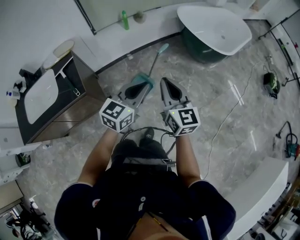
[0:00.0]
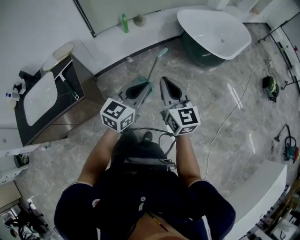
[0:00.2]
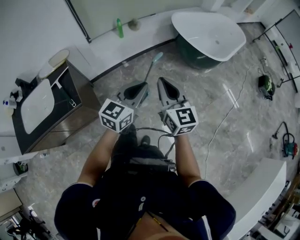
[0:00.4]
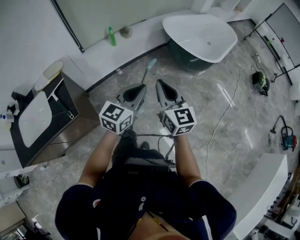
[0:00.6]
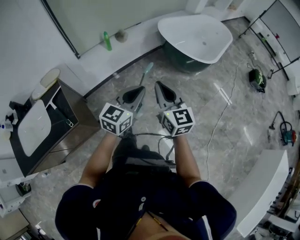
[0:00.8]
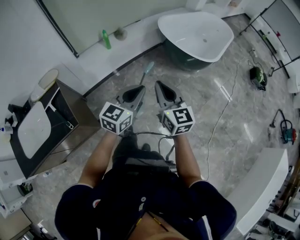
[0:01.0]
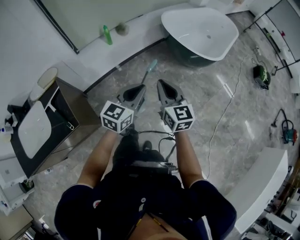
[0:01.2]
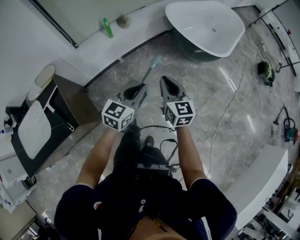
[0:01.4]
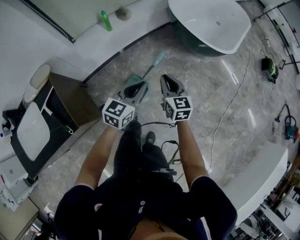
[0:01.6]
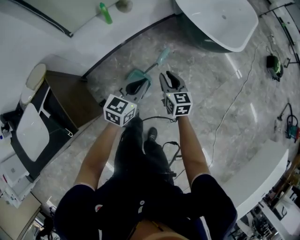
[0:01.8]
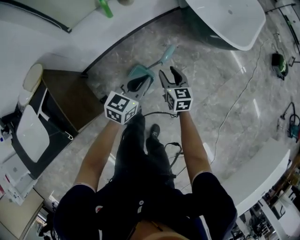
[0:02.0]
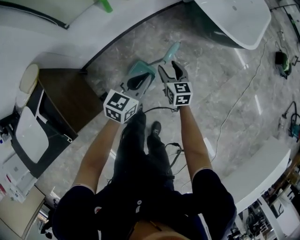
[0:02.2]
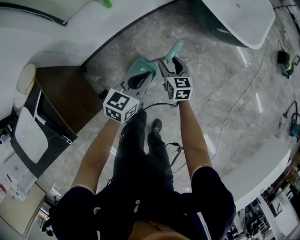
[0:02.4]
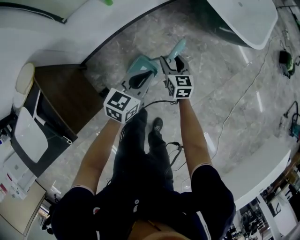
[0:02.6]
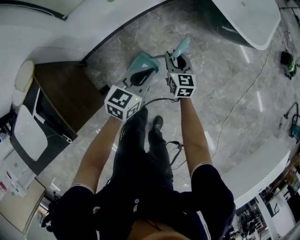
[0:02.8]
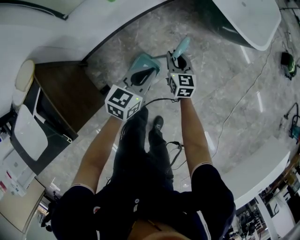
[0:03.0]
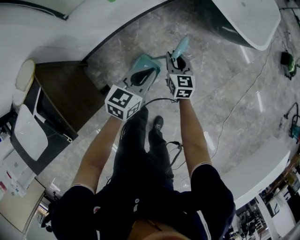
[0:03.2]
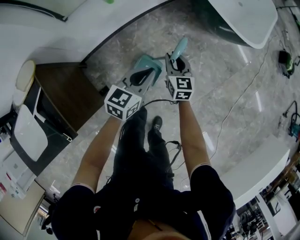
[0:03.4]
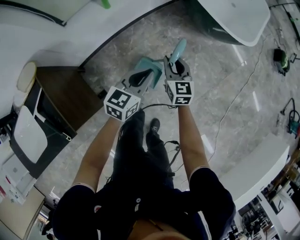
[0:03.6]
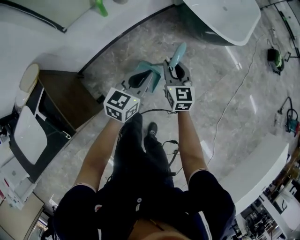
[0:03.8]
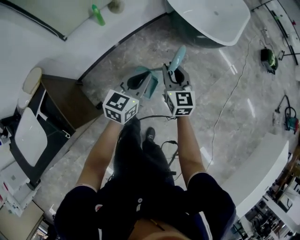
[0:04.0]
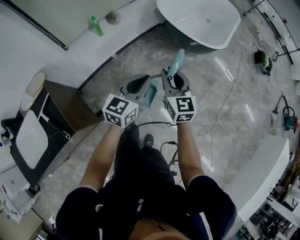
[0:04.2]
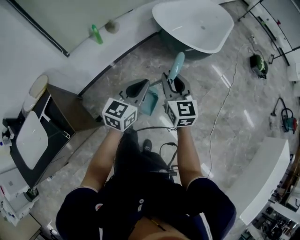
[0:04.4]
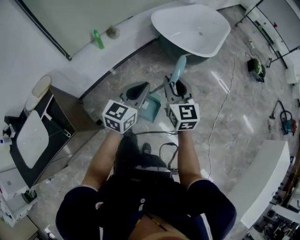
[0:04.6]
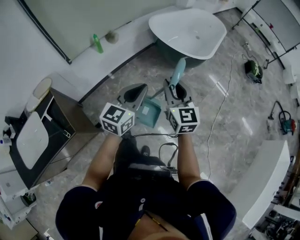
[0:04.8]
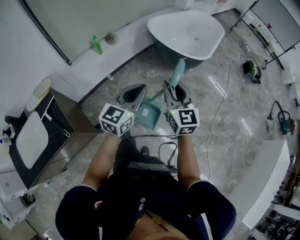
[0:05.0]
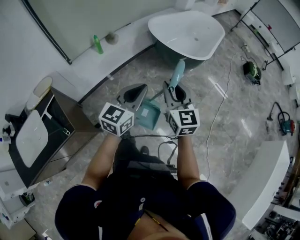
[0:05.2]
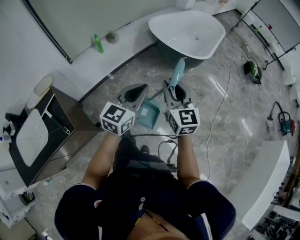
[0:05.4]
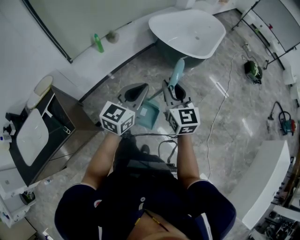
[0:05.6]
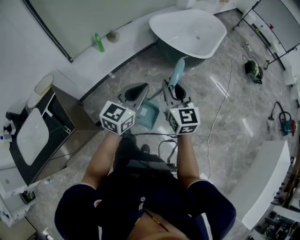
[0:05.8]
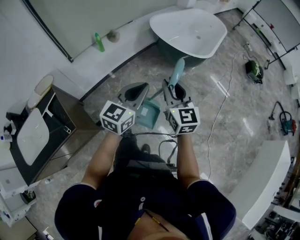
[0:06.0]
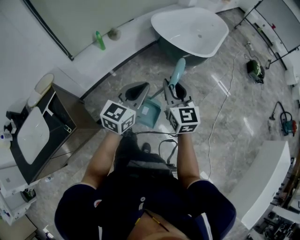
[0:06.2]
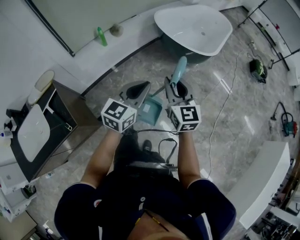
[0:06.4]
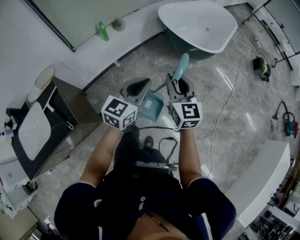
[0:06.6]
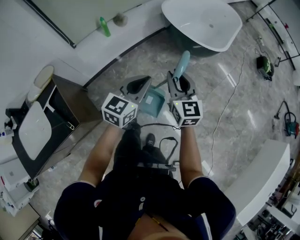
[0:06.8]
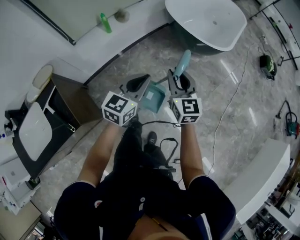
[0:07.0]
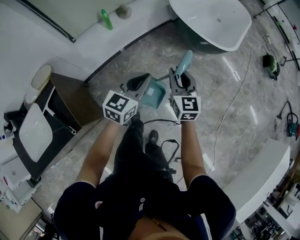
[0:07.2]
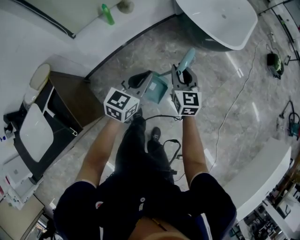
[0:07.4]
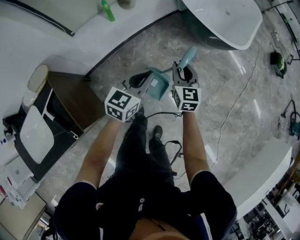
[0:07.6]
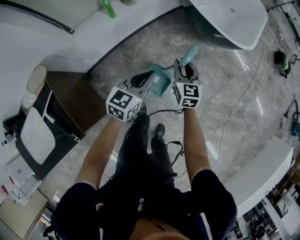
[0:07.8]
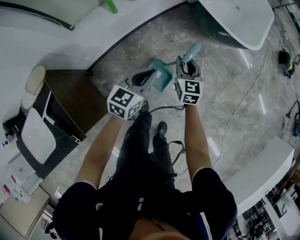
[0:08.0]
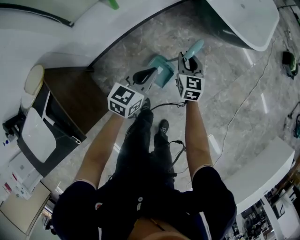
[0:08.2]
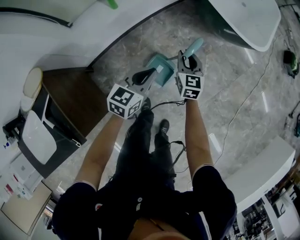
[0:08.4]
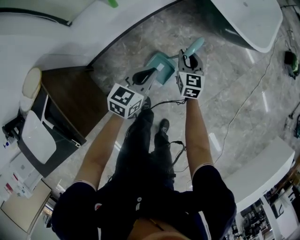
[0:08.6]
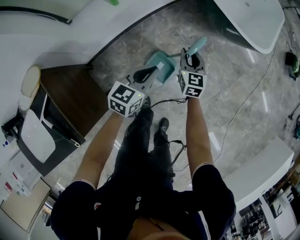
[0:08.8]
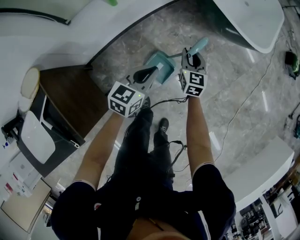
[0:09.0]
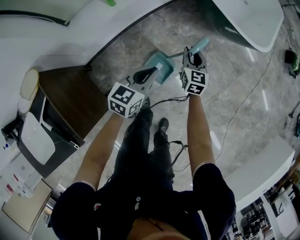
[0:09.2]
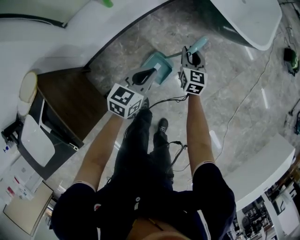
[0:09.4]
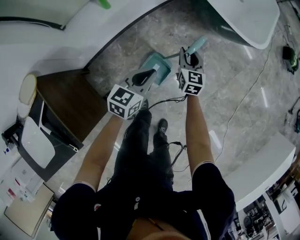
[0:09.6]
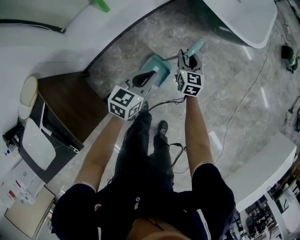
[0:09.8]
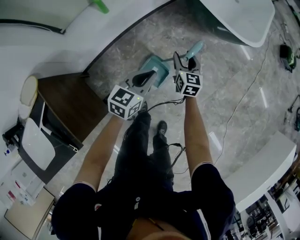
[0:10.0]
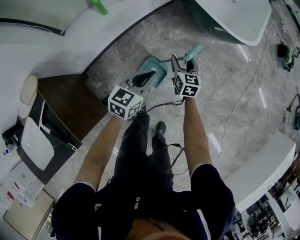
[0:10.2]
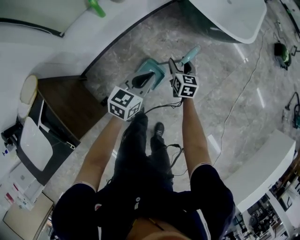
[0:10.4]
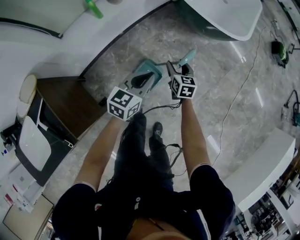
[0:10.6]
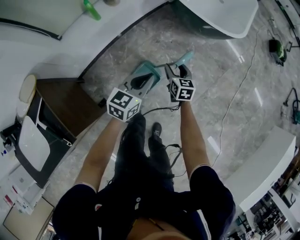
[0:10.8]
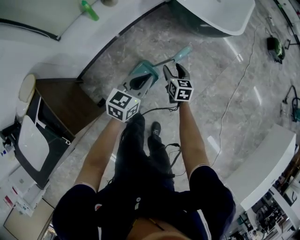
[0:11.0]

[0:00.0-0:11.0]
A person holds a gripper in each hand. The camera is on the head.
0:00.0 to 0:01.6: The two grippers go roughly 25 cm forward and downward. The right gripper changes its angle by about 20 degrees.
0:01.6 to 0:03.2: The grippers both shift downward and forward by some 20 cm. The right gripper opens.
0:03.2 to 0:04.8: The left gripper heads upward, backward and to the right, covering roughly 35 cm, and turns by about 20 degrees. Meanwhile the right gripper travels upward and backward by approximately 40 cm, and swivels some 20 degrees.
0:04.8 to 0:06.2: The grippers make only small movements.
0:06.2 to 0:07.8: The right gripper heads downward and forward, covering approximately 35 cm; the left gripper heads downward, forward and to the left, covering roughly 30 cm.
0:07.8 to 0:09.4: The left gripper shifts approximately 10 cm downward. The right gripper goes approximately 15 cm downward and forward.
0:09.4 to 0:11.0: The left gripper travels to the right, upward and backward by about 15 cm; the right gripper moves backward and to the right, some 15 cm, and opens up.

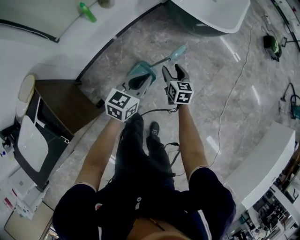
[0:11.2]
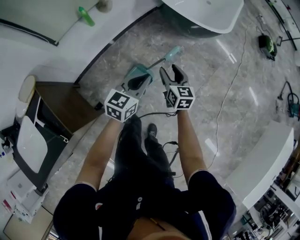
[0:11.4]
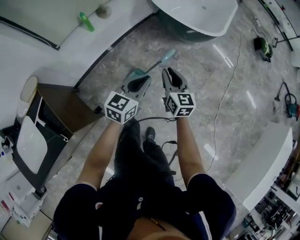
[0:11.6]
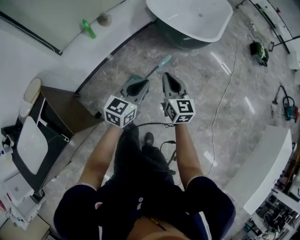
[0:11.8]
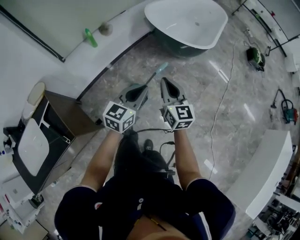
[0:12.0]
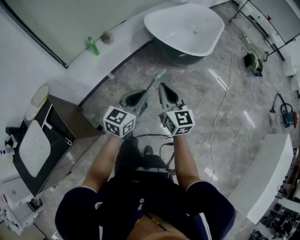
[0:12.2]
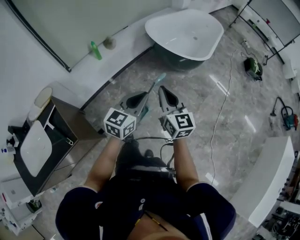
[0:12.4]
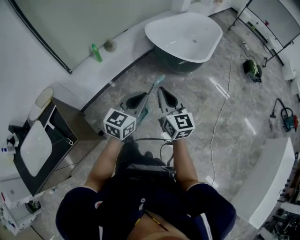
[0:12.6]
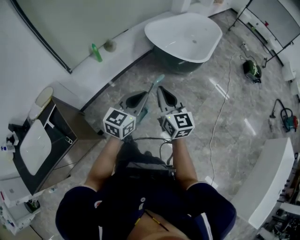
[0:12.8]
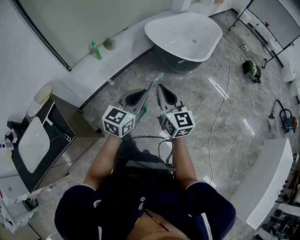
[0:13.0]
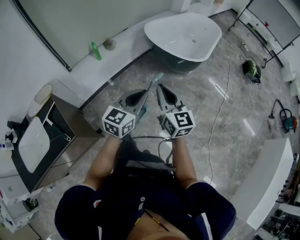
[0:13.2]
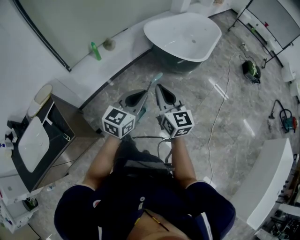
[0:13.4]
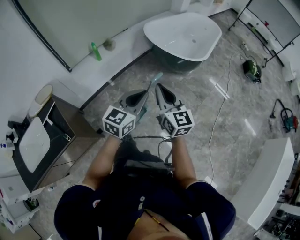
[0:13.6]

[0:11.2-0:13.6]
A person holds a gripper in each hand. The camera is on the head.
0:11.2 to 0:12.4: The right gripper shifts roughly 35 cm upward and backward, changes its angle by some 30 degrees, and closes its fingers. Meanwhile the left gripper travels upward and backward by about 20 cm.
0:12.4 to 0:13.6: The grippers make only small movements.

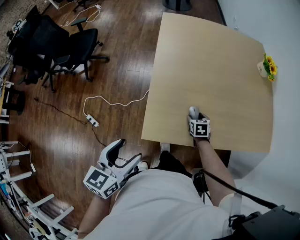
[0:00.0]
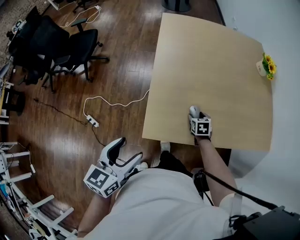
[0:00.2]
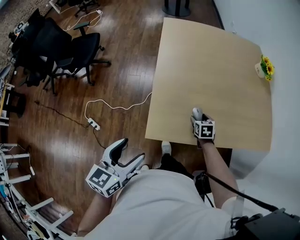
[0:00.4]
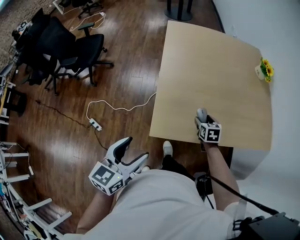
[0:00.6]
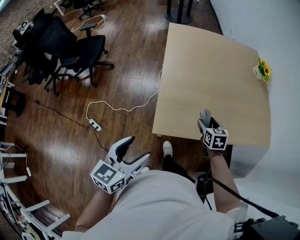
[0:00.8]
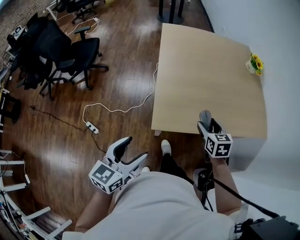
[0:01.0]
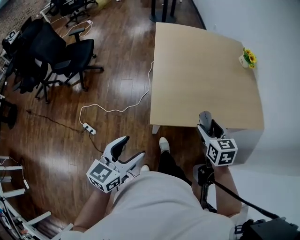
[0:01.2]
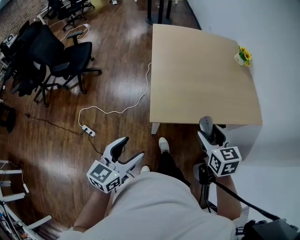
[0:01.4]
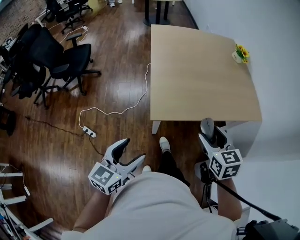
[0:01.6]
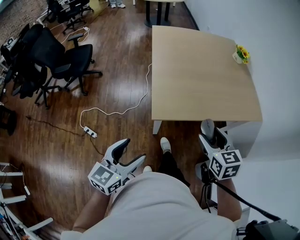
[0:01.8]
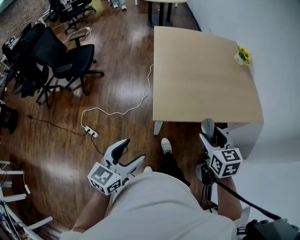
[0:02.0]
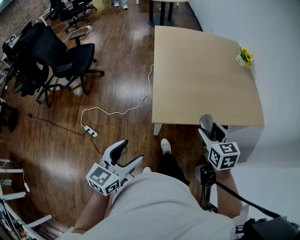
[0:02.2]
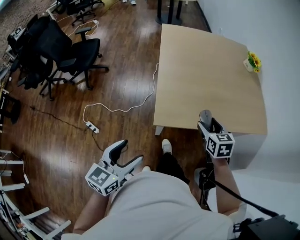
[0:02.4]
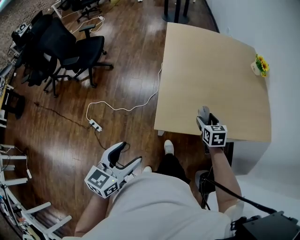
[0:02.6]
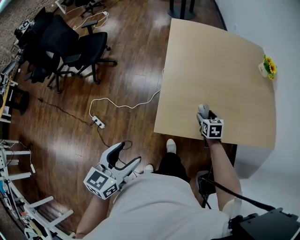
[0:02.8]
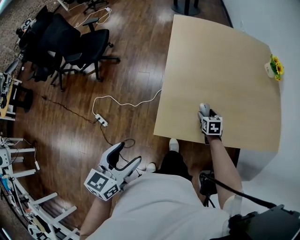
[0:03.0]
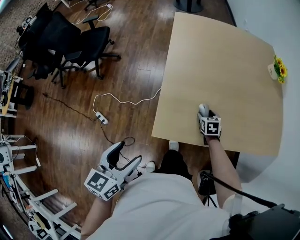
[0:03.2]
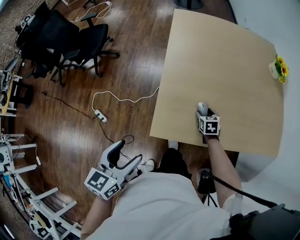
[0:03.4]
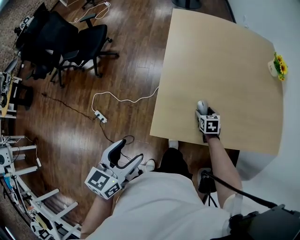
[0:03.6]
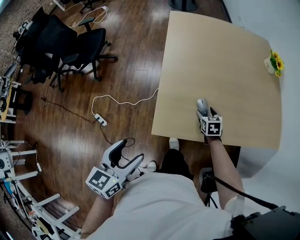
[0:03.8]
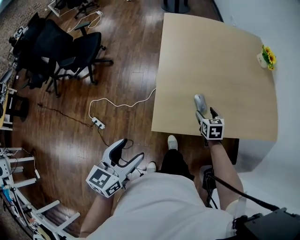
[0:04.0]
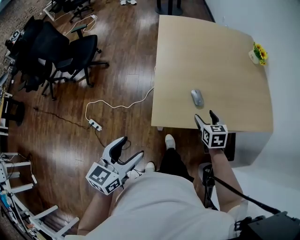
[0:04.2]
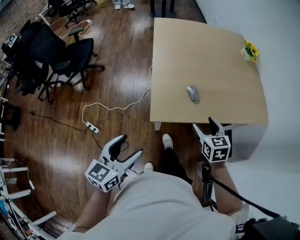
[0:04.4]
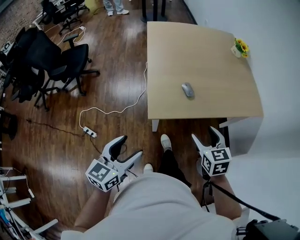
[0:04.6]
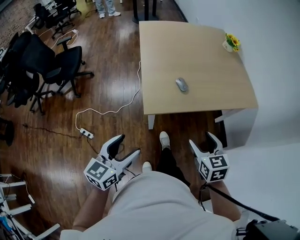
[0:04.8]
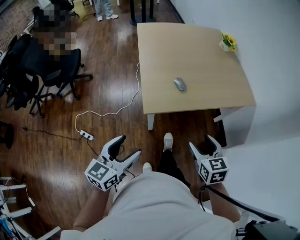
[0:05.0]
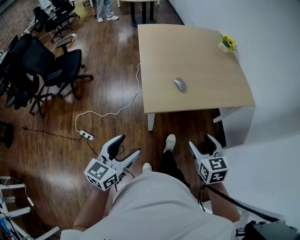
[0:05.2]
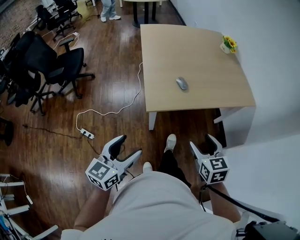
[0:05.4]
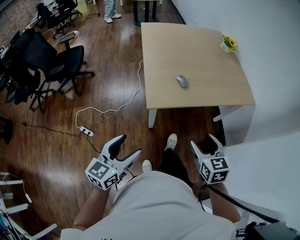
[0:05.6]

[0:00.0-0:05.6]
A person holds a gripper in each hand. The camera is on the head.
0:00.0 to 0:01.4: The right gripper shifts approximately 40 cm upward and backward, and turns by about 20 degrees, while the left gripper heads backward, covering about 15 cm.
0:01.4 to 0:02.8: The right gripper goes approximately 30 cm forward and downward. Meanwhile the left gripper goes roughly 5 cm forward.
0:02.8 to 0:04.2: The right gripper goes approximately 10 cm backward and upward. The left gripper reaches some 5 cm forward, then returns.
0:04.2 to 0:05.6: The right gripper moves backward and upward, roughly 35 cm, while the left gripper goes about 15 cm backward.

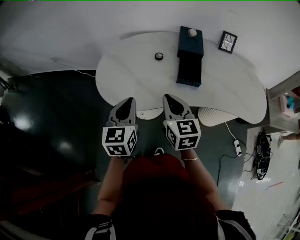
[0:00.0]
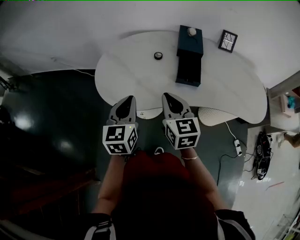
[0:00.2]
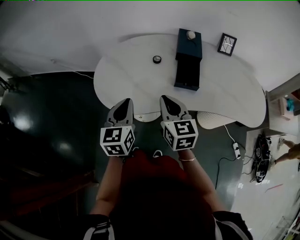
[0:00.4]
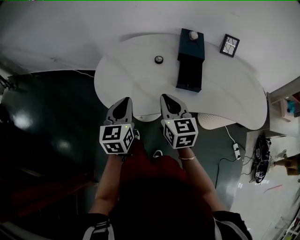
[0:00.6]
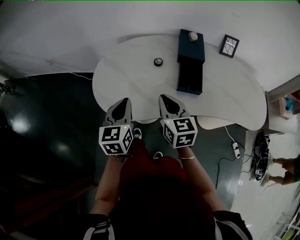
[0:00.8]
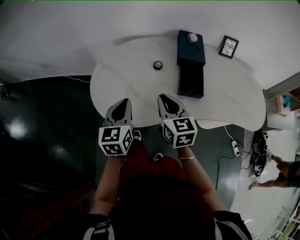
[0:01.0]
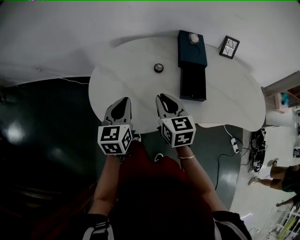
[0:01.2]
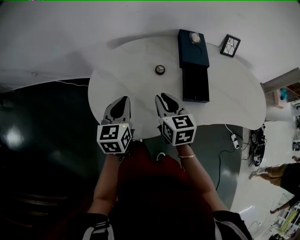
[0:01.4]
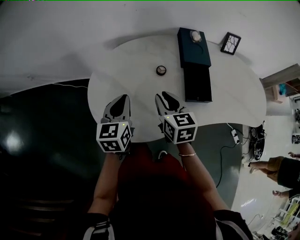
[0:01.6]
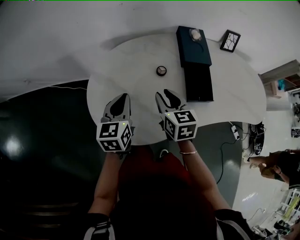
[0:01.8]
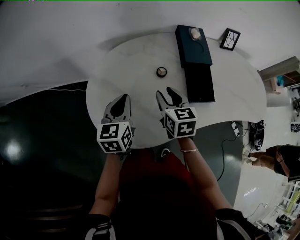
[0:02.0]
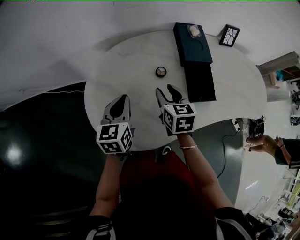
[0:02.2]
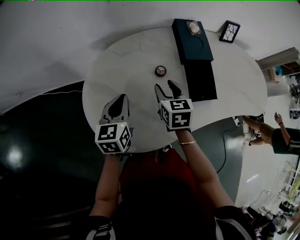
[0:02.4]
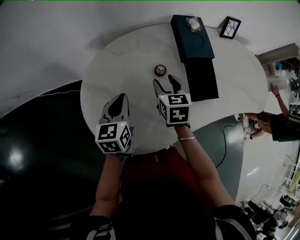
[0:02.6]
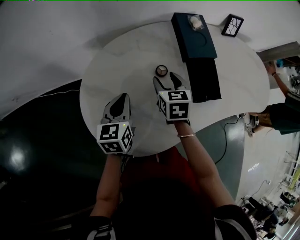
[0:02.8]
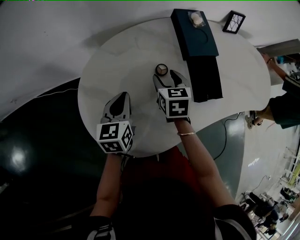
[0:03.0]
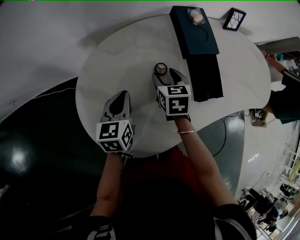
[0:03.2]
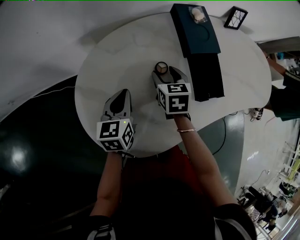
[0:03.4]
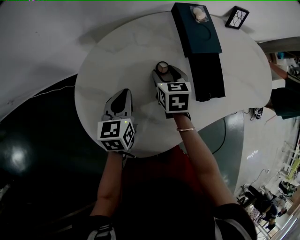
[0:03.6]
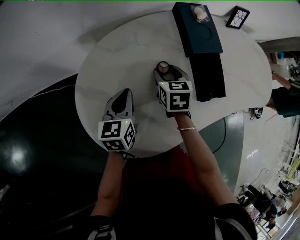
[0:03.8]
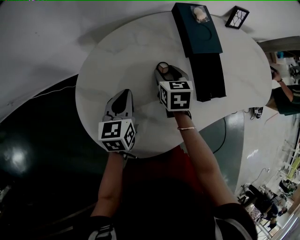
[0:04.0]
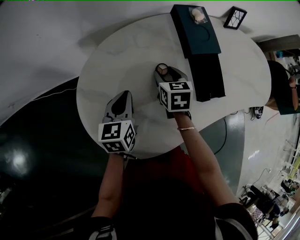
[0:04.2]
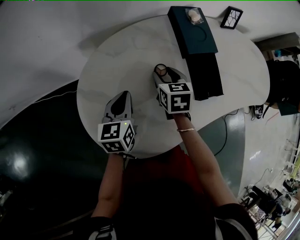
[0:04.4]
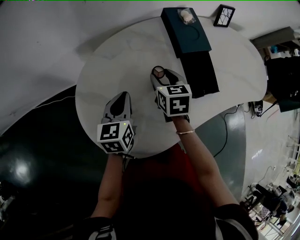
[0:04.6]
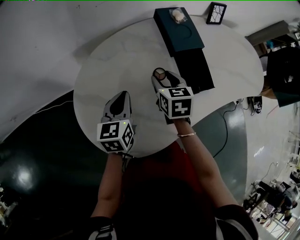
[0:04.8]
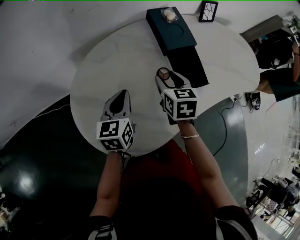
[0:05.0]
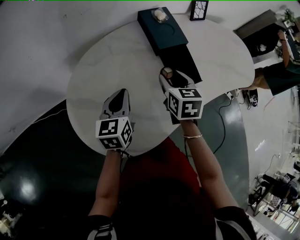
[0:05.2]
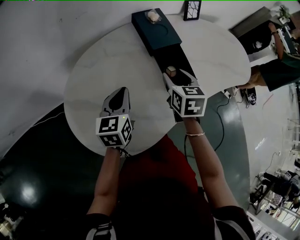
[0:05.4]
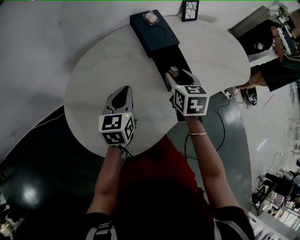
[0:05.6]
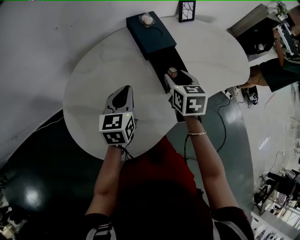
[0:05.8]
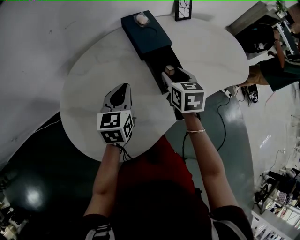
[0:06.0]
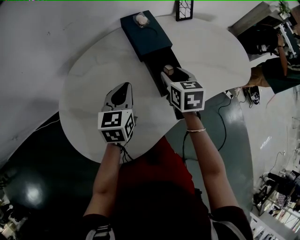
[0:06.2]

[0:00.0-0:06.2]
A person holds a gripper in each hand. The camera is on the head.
0:00.0 to 0:01.6: Both grippers move forward, roughly 15 cm.
0:01.6 to 0:03.2: The grippers both shift forward and downward by approximately 15 cm. The right gripper turns by approximately 20 degrees, and opens up.
0:03.2 to 0:04.6: The grippers move only a little.
0:04.6 to 0:06.2: Both grippers travel together to the right, about 15 cm.
